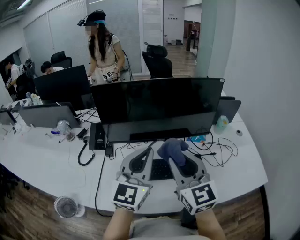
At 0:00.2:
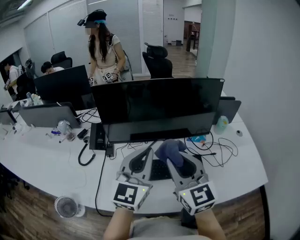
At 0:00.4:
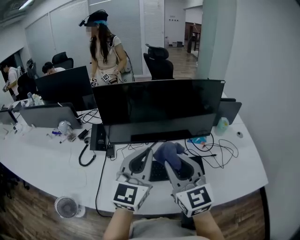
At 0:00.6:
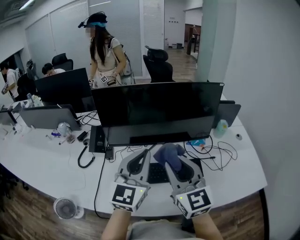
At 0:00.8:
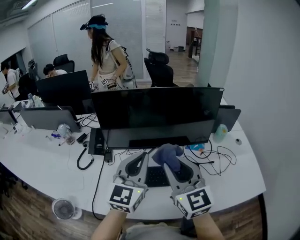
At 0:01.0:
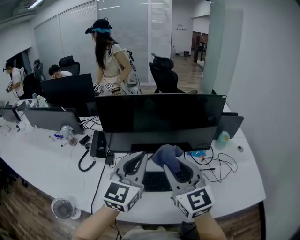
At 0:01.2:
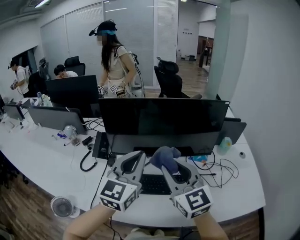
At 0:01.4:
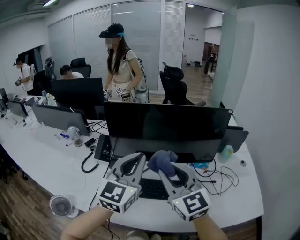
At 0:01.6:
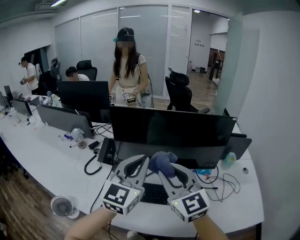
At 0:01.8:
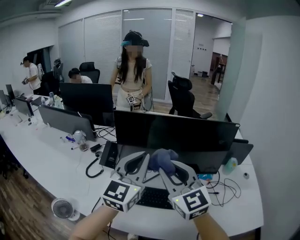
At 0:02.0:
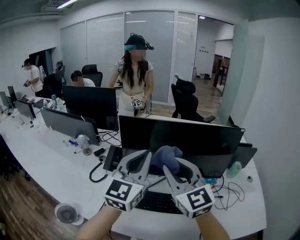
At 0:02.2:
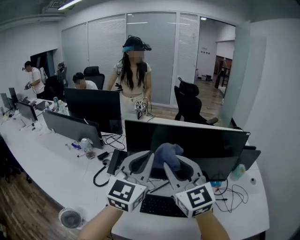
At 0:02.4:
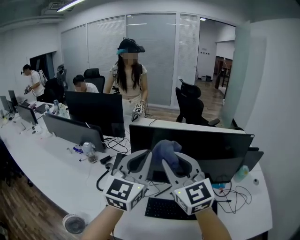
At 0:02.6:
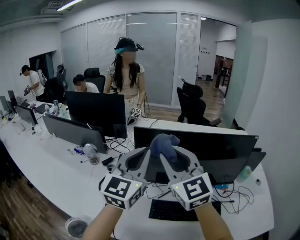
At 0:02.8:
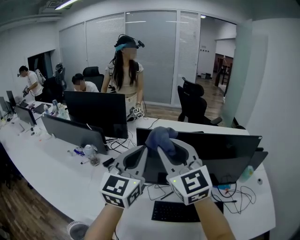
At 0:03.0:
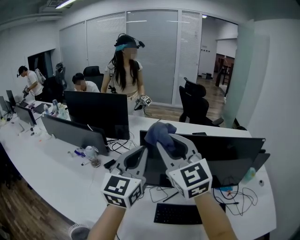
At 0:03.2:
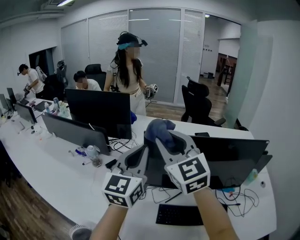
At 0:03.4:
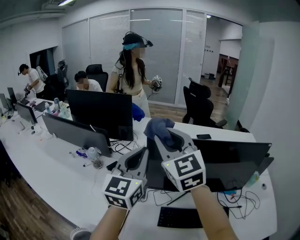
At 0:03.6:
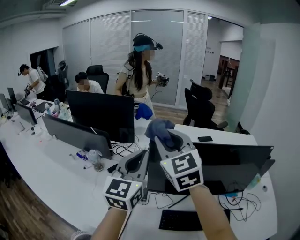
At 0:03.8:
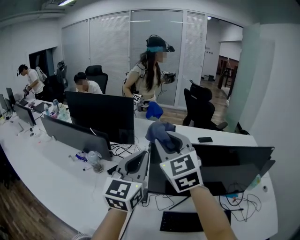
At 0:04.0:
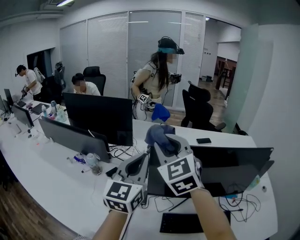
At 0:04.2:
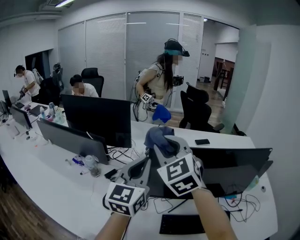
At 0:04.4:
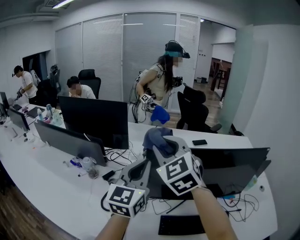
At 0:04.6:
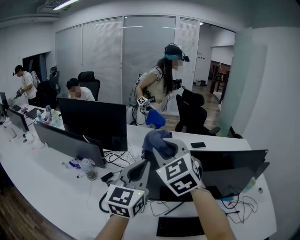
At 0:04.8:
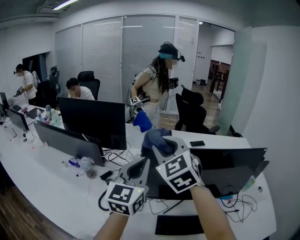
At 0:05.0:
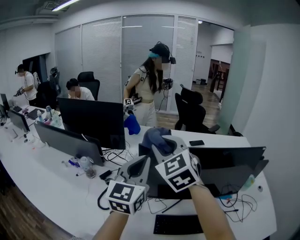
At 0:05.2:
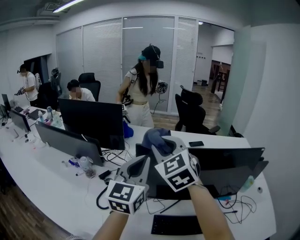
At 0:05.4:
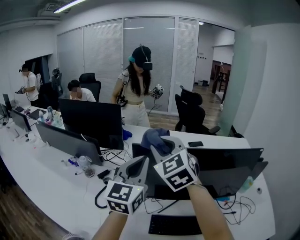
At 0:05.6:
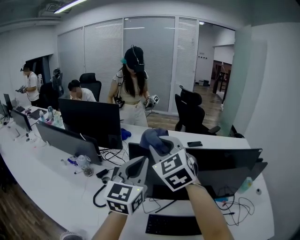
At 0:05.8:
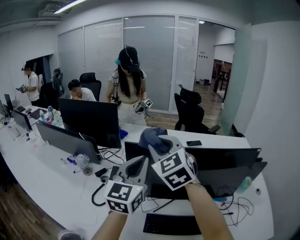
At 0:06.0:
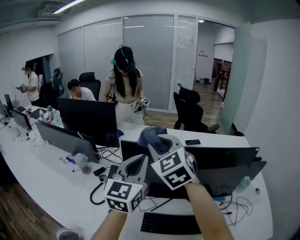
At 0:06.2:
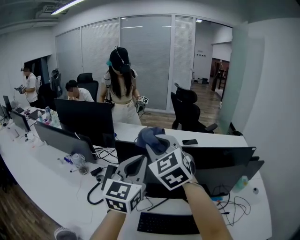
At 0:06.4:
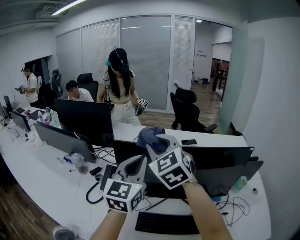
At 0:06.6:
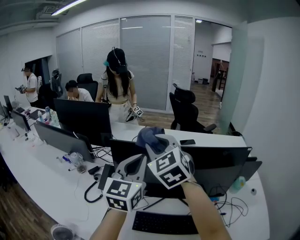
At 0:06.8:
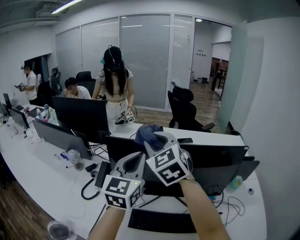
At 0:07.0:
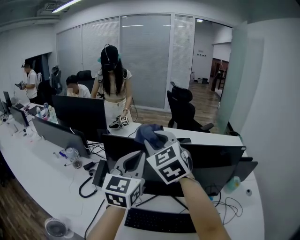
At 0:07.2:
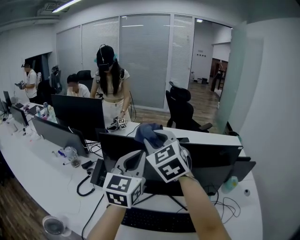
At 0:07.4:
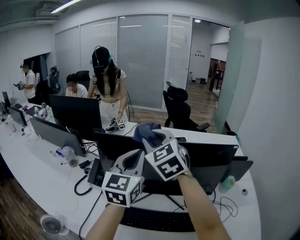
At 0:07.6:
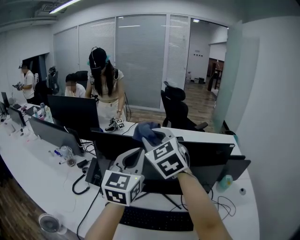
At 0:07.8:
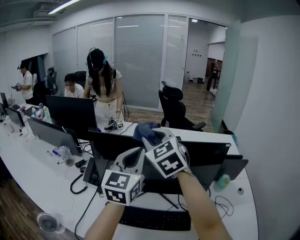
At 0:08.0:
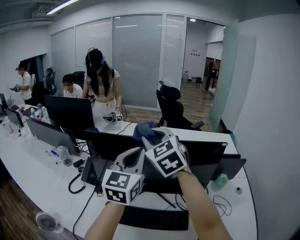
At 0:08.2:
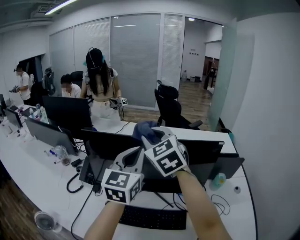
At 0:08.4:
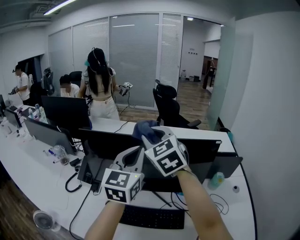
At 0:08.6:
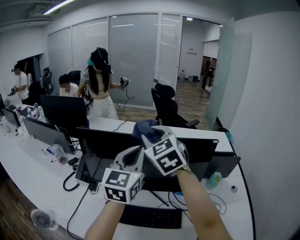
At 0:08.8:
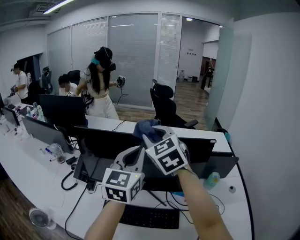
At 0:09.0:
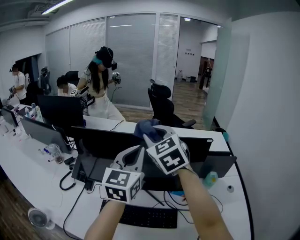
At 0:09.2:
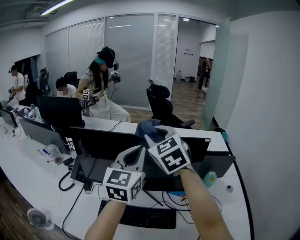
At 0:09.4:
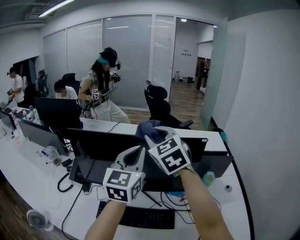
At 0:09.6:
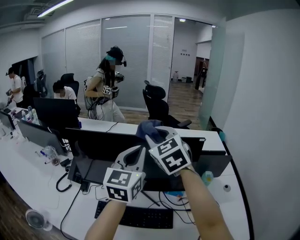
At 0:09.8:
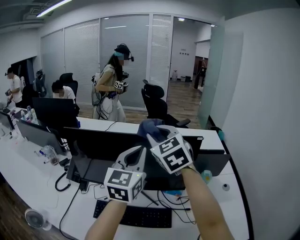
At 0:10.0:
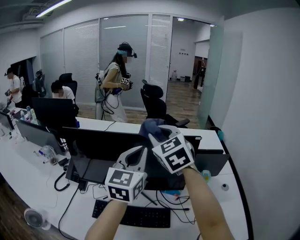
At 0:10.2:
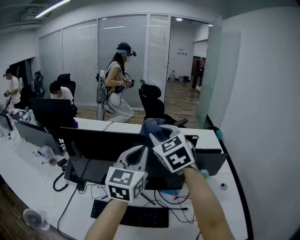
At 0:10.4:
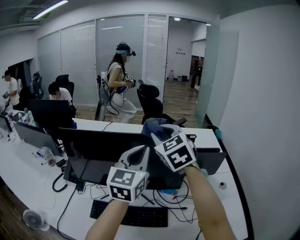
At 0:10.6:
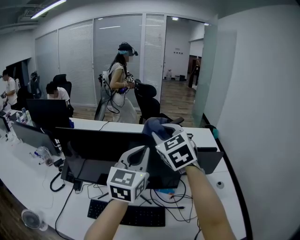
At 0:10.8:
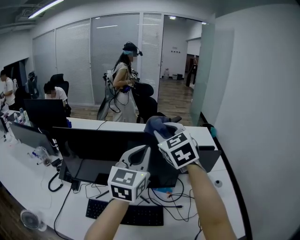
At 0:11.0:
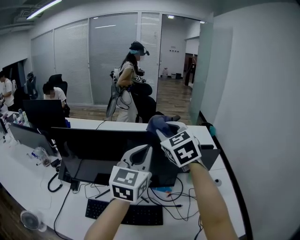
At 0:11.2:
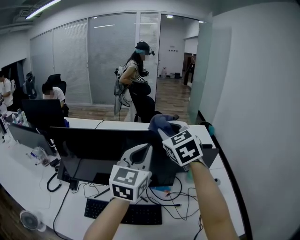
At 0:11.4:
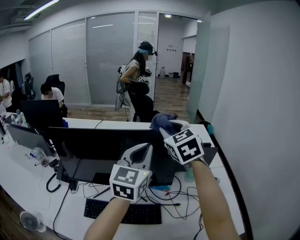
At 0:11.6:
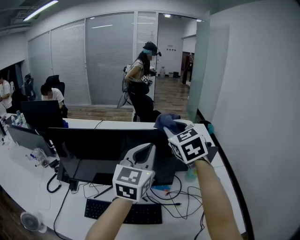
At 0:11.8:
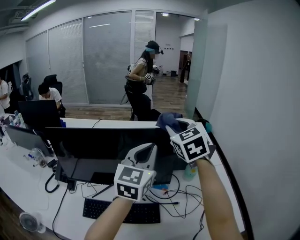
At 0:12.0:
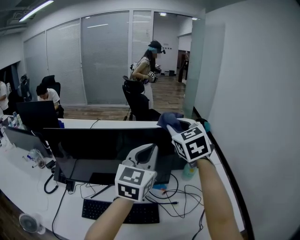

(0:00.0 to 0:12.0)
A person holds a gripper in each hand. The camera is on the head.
0:00.0 - 0:01.6: The left gripper shifts about 5 cm upward; the right gripper ends up roughly 10 cm from where it was.
0:01.6 - 0:03.0: The right gripper goes approximately 25 cm forward, to the left and upward, while the left gripper goes some 20 cm to the left and forward.
0:03.0 - 0:04.4: The right gripper travels forward by about 10 cm, and turns by some 20 degrees; the left gripper ends up approximately 5 cm from where it was.
0:04.4 - 0:06.0: The two grippers go about 10 cm to the right.
0:06.0 - 0:07.6: Both grippers travel together to the right, about 10 cm.
0:07.6 - 0:09.0: Both grippers move to the right, approximately 10 cm.
0:09.0 - 0:10.4: Both grippers move to the right, about 10 cm.
0:10.4 - 0:12.0: Both grippers move to the right, approximately 10 cm.

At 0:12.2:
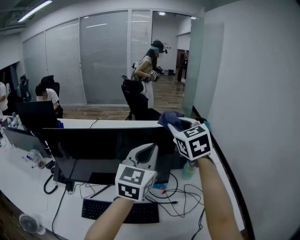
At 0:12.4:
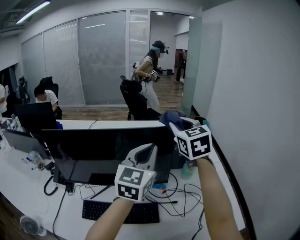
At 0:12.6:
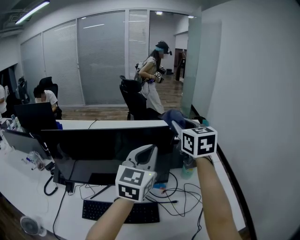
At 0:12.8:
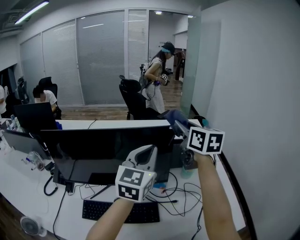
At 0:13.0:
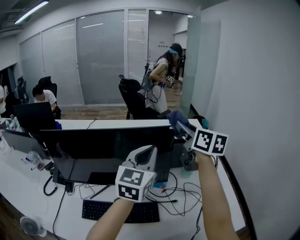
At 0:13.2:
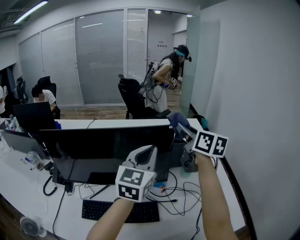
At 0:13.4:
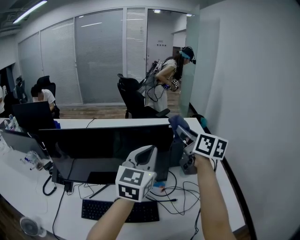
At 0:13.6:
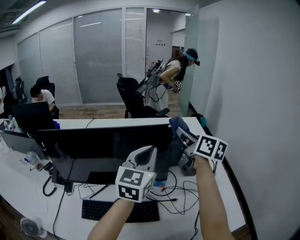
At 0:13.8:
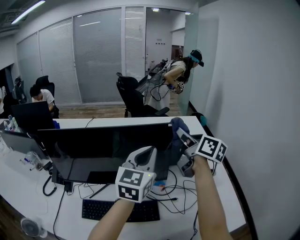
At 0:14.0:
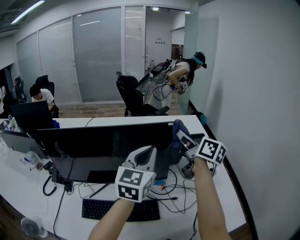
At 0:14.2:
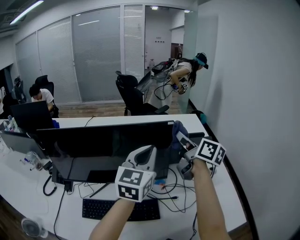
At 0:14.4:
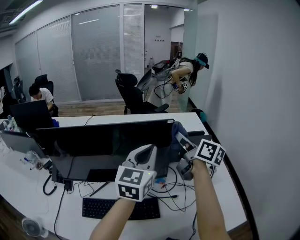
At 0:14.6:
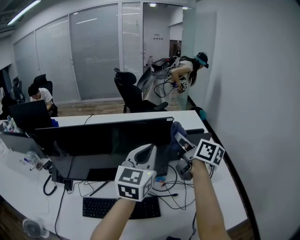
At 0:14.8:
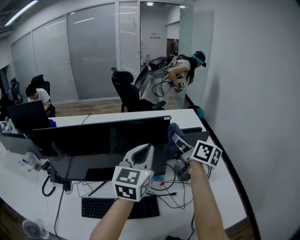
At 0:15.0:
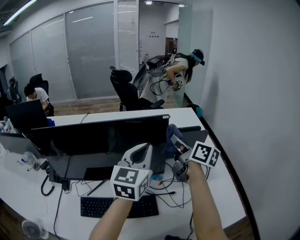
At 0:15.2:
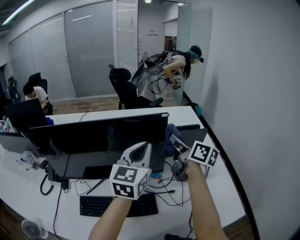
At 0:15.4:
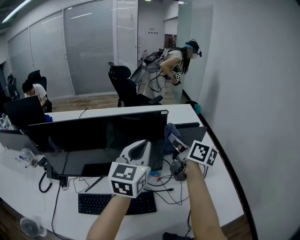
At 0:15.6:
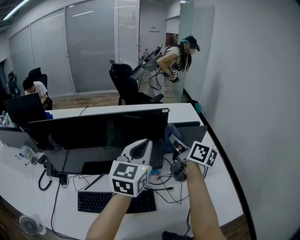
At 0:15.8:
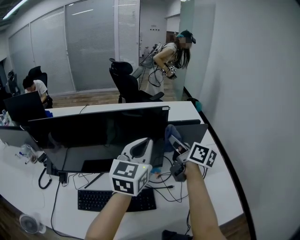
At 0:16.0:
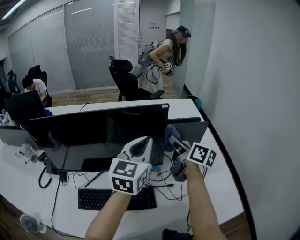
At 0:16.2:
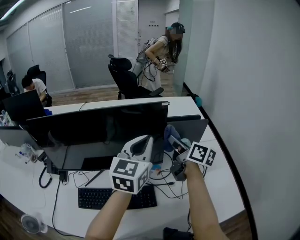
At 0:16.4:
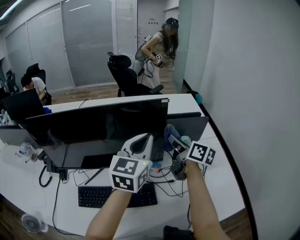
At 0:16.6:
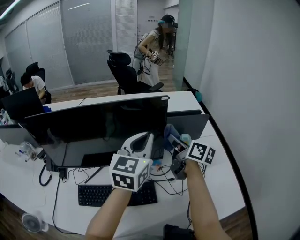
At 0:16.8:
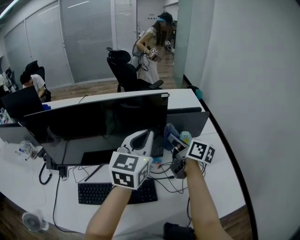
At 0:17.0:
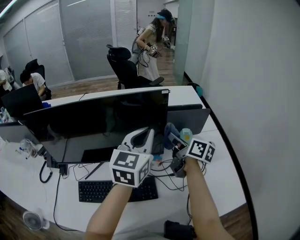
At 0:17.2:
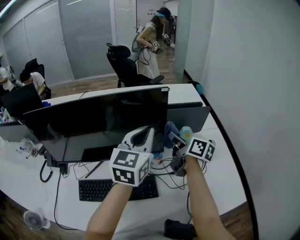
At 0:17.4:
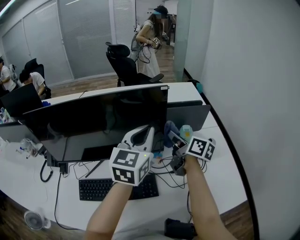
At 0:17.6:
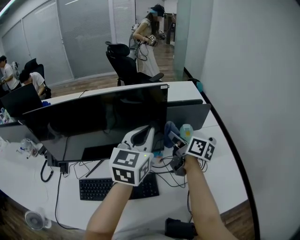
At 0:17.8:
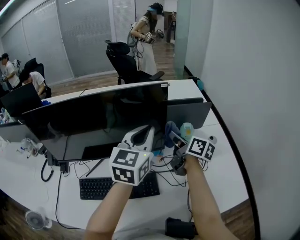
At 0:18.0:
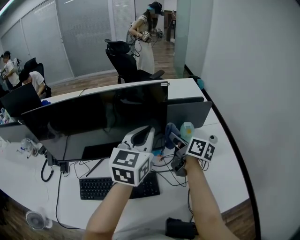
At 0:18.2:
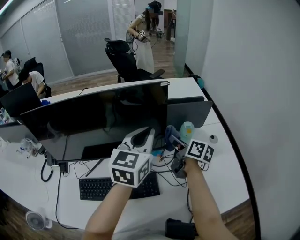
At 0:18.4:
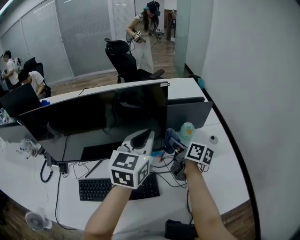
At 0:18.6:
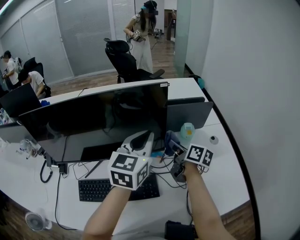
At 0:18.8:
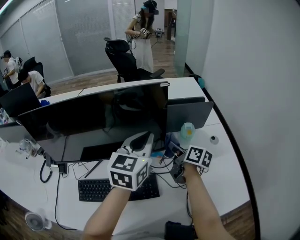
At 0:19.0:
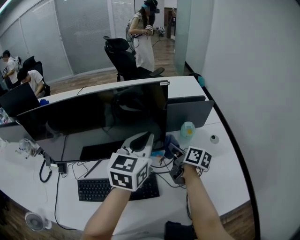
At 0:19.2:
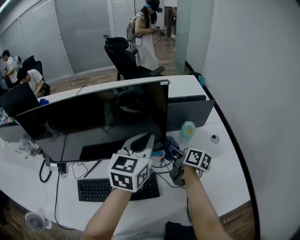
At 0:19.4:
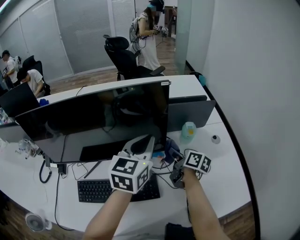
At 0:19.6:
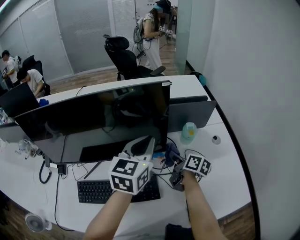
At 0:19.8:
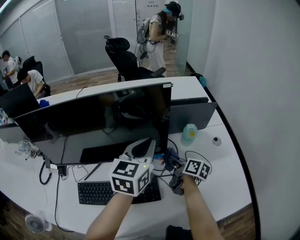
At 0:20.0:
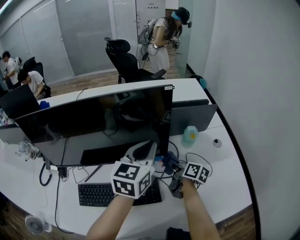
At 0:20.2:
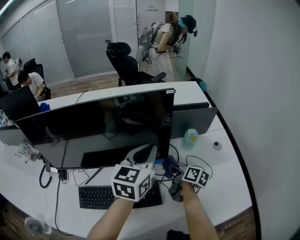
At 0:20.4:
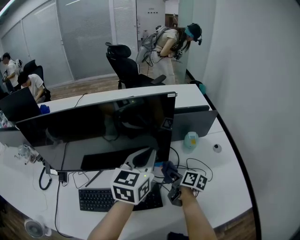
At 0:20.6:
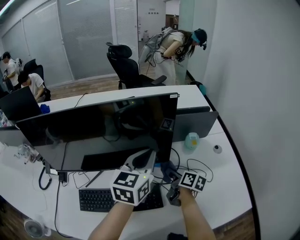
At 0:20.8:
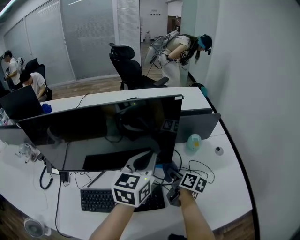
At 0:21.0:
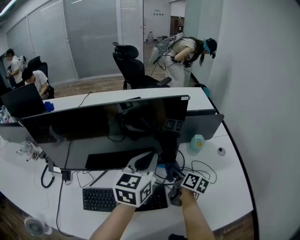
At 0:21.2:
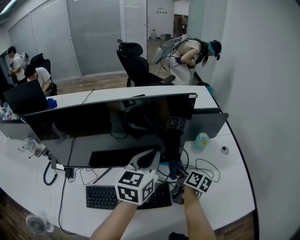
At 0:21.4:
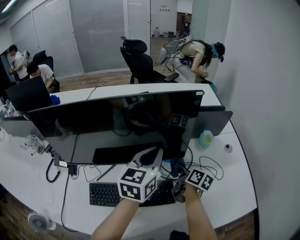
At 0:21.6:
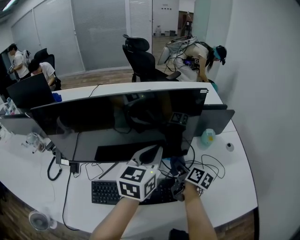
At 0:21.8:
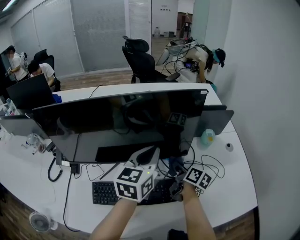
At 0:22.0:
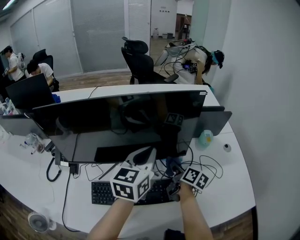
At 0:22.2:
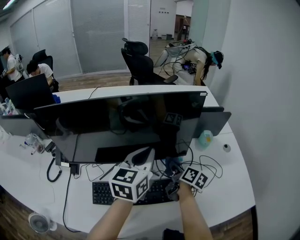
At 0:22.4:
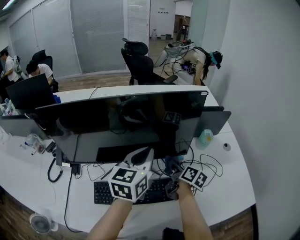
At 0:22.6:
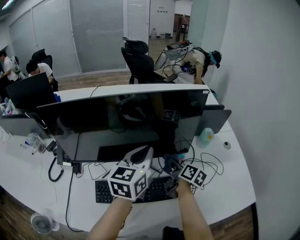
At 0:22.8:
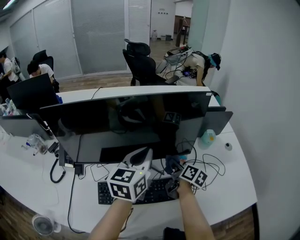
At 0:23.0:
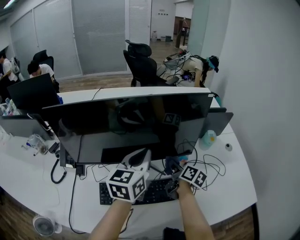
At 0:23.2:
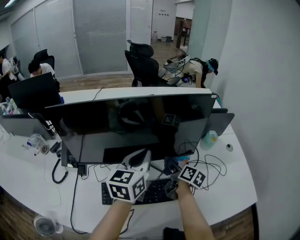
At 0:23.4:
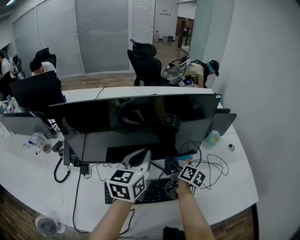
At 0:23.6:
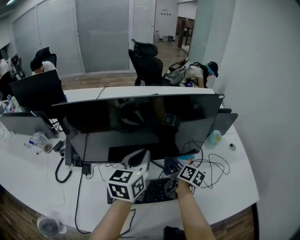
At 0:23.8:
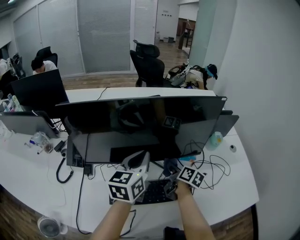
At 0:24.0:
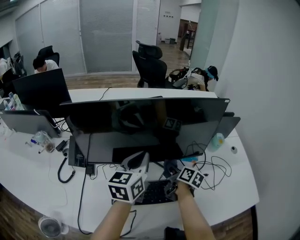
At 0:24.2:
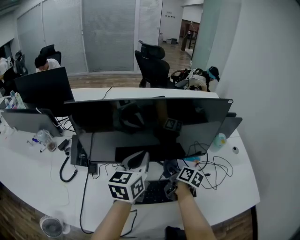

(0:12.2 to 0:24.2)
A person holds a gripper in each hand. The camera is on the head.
0:12.2 - 0:13.8: The right gripper moves to the right and downward, roughly 10 cm, and rolls clockwise, seen from behind, by approximately 60 degrees.
0:13.8 - 0:15.2: The right gripper moves downward, some 5 cm.
0:15.2 - 0:16.6: The right gripper goes roughly 10 cm downward.
0:16.6 - 0:18.2: The right gripper moves downward, some 10 cm.
0:18.2 - 0:19.8: The right gripper travels downward by about 10 cm.
0:19.8 - 0:21.2: The left gripper moves to the left, some 5 cm.
0:21.2 - 0:22.6: Both grippers move to the left, approximately 10 cm.
0:22.6 - 0:24.2: The grippers both shift to the left by approximately 10 cm.
